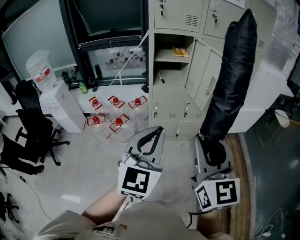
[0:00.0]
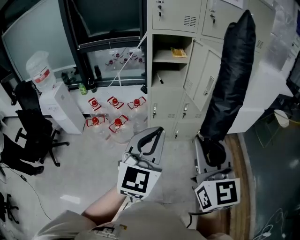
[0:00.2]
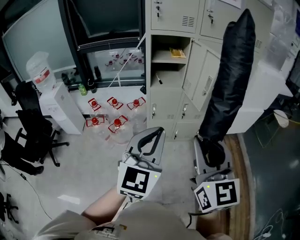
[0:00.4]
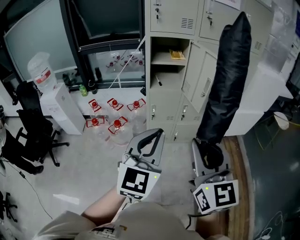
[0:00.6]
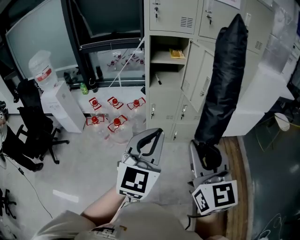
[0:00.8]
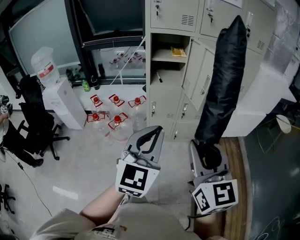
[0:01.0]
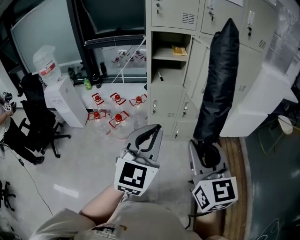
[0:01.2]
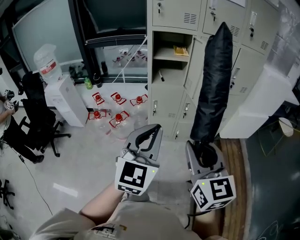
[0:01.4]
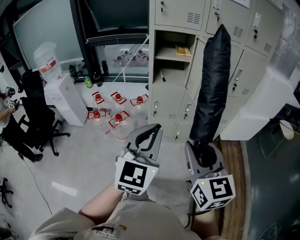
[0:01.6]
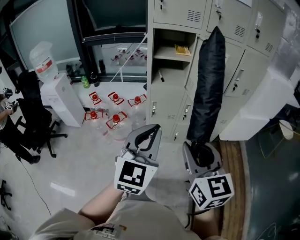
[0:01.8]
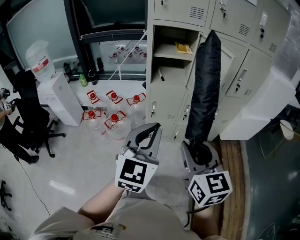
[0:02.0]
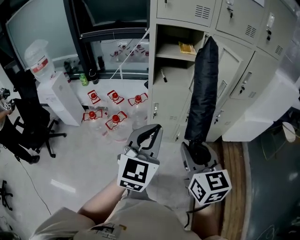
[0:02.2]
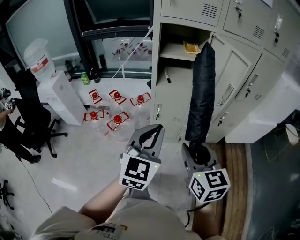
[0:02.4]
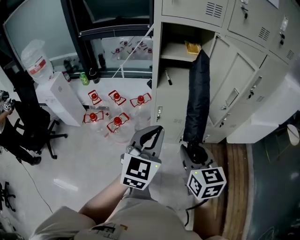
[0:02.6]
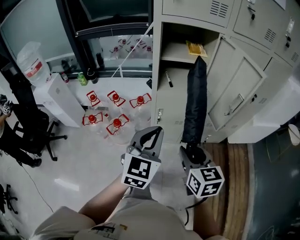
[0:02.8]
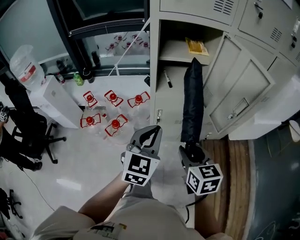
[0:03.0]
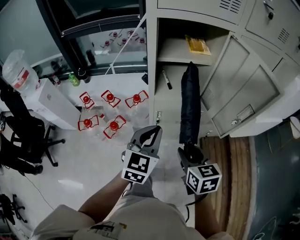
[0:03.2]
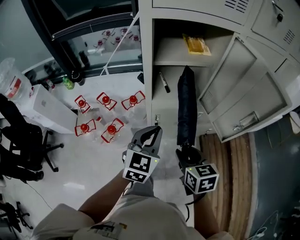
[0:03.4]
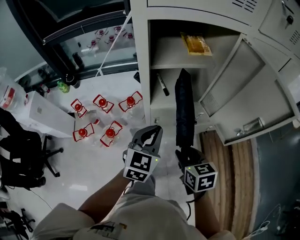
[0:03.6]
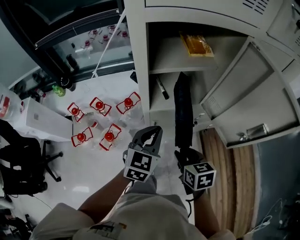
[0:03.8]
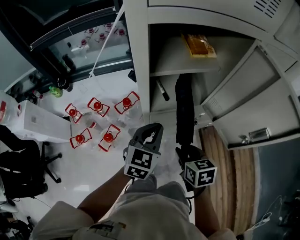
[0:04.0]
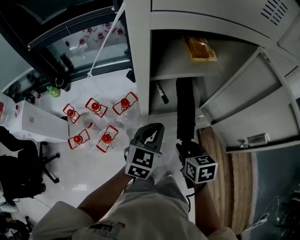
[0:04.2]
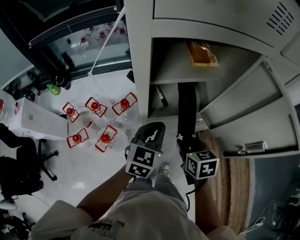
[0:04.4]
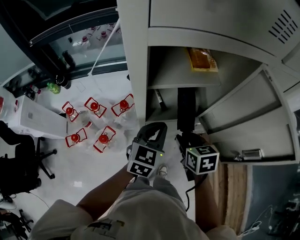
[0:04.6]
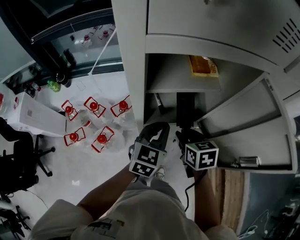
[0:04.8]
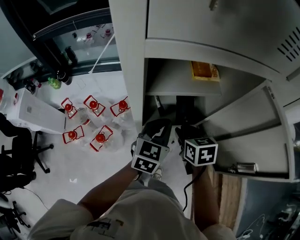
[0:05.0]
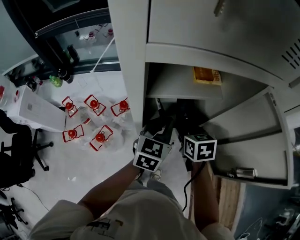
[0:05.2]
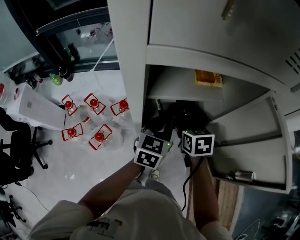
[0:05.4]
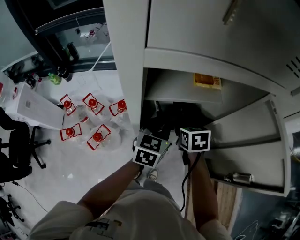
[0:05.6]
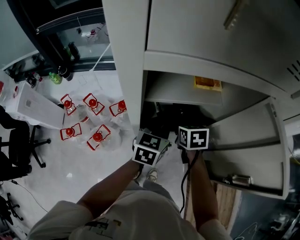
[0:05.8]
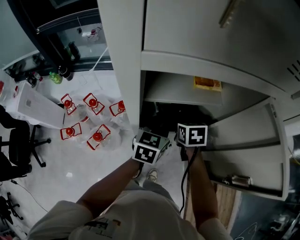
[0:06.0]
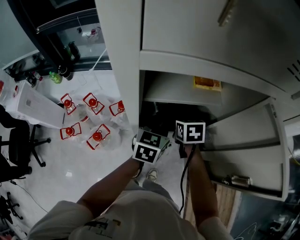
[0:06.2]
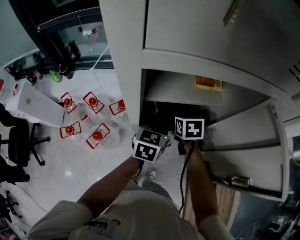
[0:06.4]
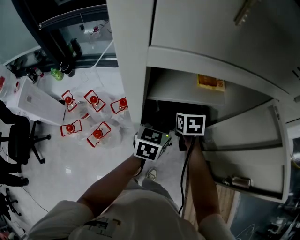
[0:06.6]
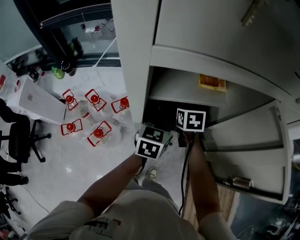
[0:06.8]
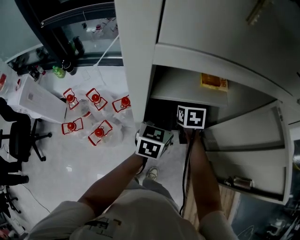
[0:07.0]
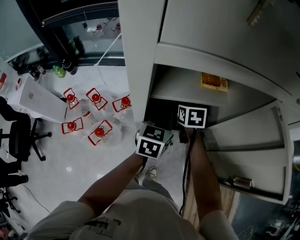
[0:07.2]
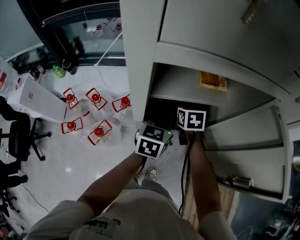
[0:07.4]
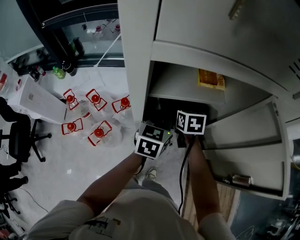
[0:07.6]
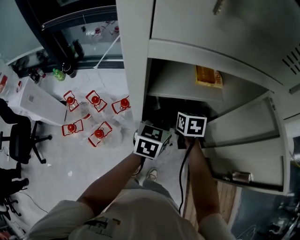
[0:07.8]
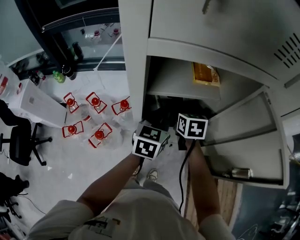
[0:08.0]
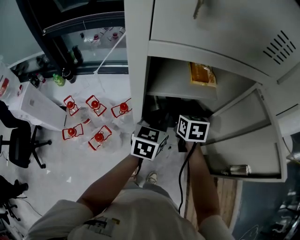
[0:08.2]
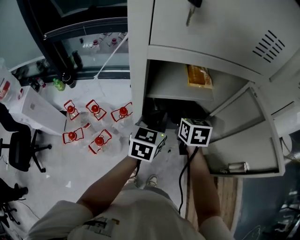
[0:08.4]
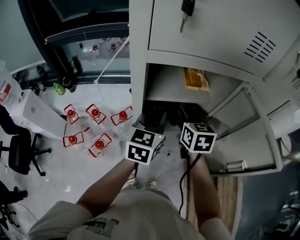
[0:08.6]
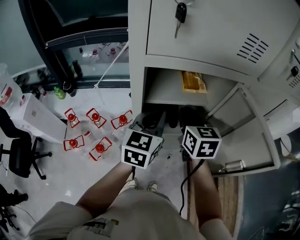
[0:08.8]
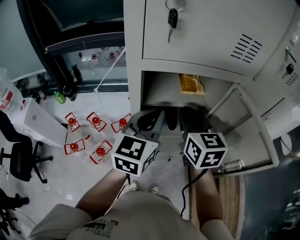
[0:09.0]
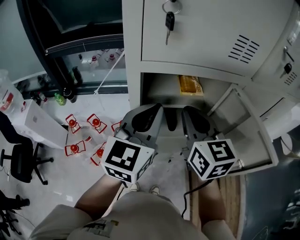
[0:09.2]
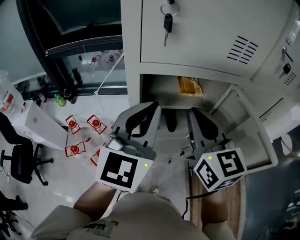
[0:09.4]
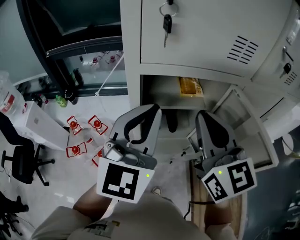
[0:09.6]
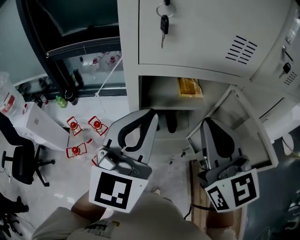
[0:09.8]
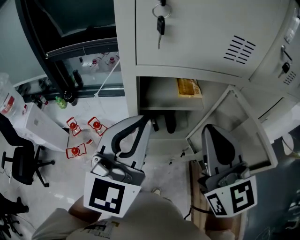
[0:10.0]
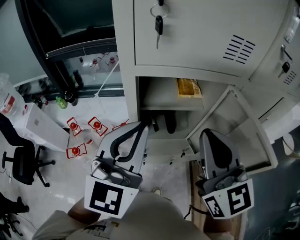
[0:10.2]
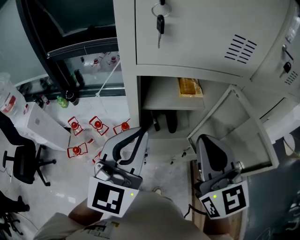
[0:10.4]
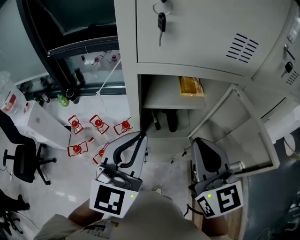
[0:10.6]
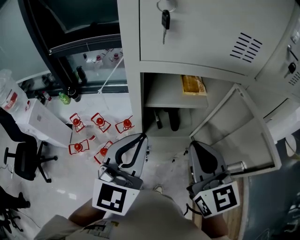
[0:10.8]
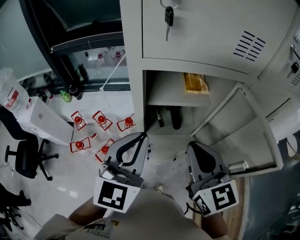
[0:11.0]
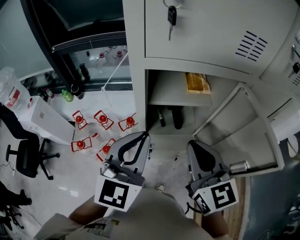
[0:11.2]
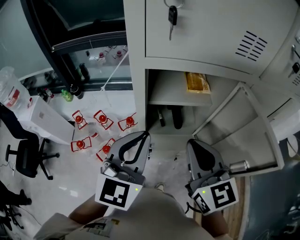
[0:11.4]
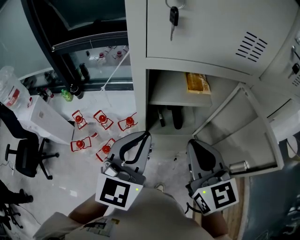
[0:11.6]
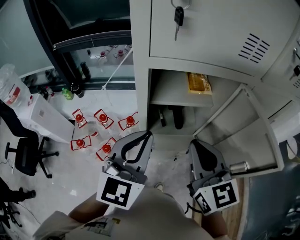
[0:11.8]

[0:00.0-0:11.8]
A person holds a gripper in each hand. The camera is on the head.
0.0 to 1.4 s: The left gripper travels to the right by approximately 5 cm; the right gripper travels downward and to the right by roughly 5 cm.
1.4 to 3.0 s: The grippers both shift forward and downward by about 35 cm. The right gripper swivels approximately 30 degrees.
3.0 to 4.4 s: The two grippers go roughly 25 cm forward.
4.4 to 6.0 s: The right gripper shifts some 15 cm forward, while the left gripper shifts some 10 cm forward.
6.0 to 7.4 s: The right gripper is displaced forward by about 5 cm.
7.4 to 8.8 s: The left gripper moves upward and backward, approximately 15 cm; the right gripper goes approximately 20 cm upward and backward, swivels some 20 degrees, and closes its fingers.
8.8 to 10.4 s: The grippers both shift upward and backward by roughly 20 cm. The left gripper turns by about 20 degrees. The right gripper turns by about 20 degrees.
10.4 to 11.8 s: The right gripper is displaced downward by approximately 5 cm.

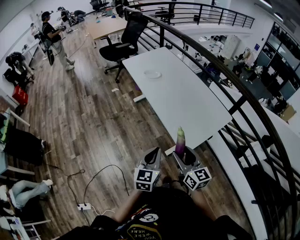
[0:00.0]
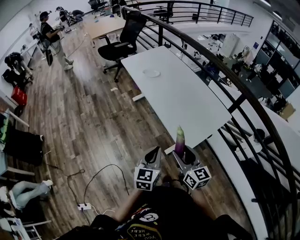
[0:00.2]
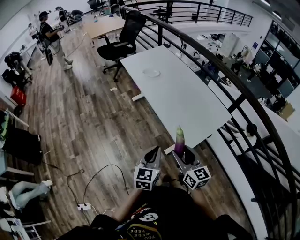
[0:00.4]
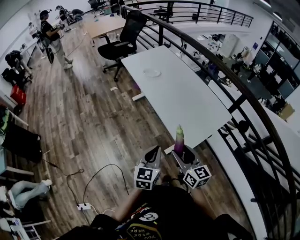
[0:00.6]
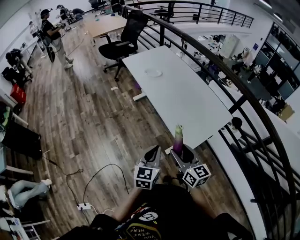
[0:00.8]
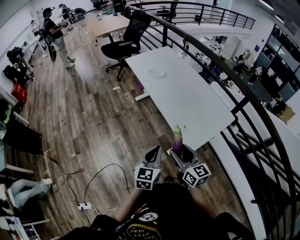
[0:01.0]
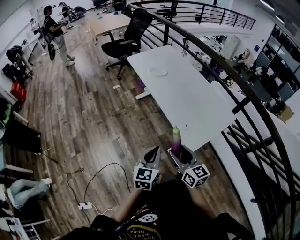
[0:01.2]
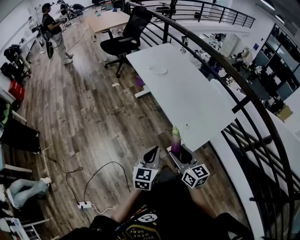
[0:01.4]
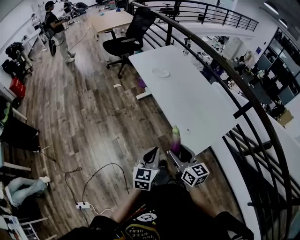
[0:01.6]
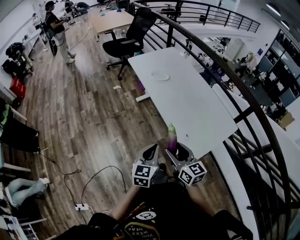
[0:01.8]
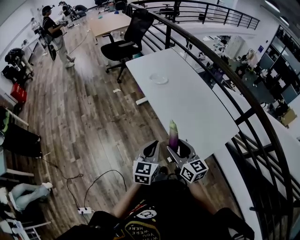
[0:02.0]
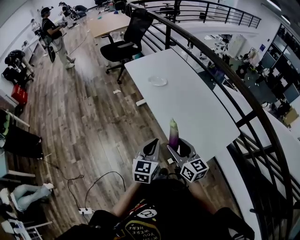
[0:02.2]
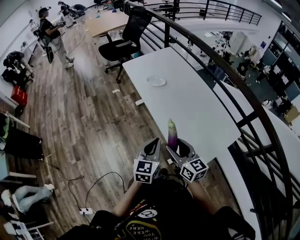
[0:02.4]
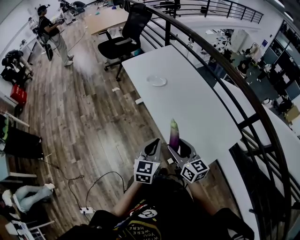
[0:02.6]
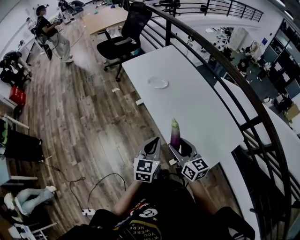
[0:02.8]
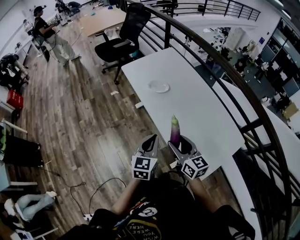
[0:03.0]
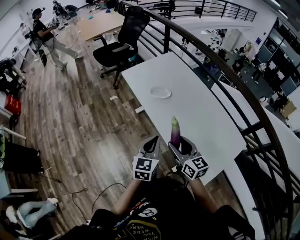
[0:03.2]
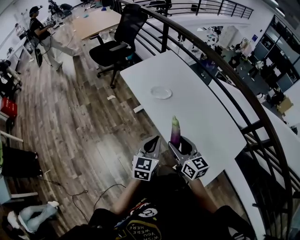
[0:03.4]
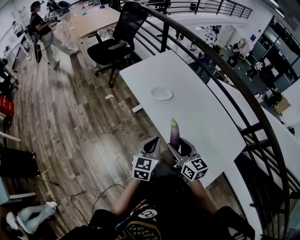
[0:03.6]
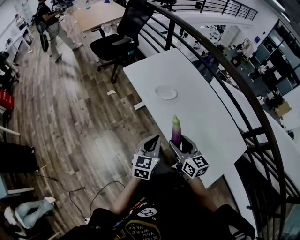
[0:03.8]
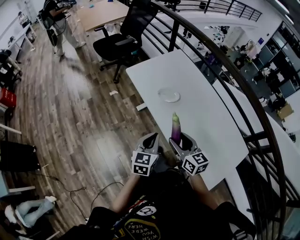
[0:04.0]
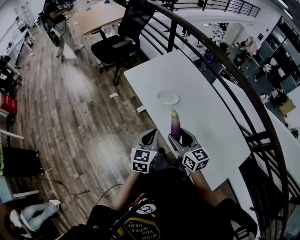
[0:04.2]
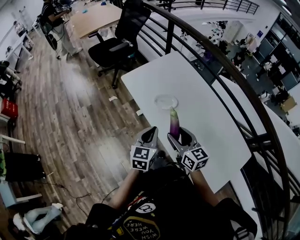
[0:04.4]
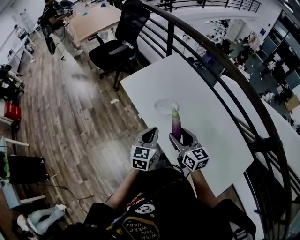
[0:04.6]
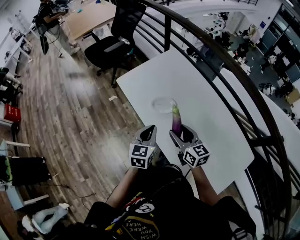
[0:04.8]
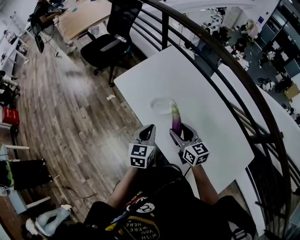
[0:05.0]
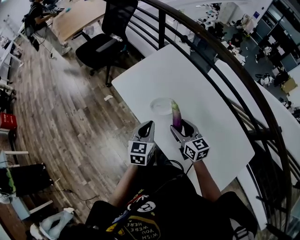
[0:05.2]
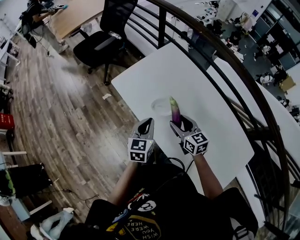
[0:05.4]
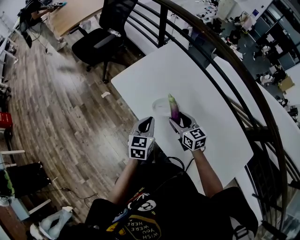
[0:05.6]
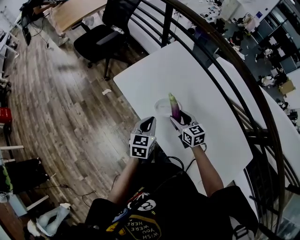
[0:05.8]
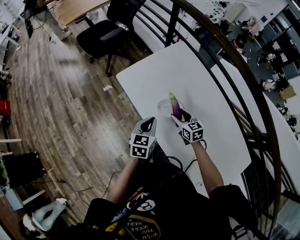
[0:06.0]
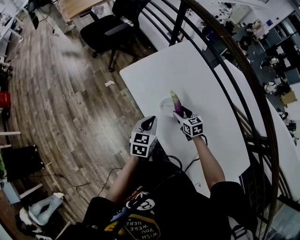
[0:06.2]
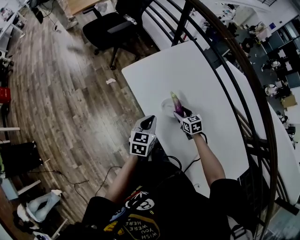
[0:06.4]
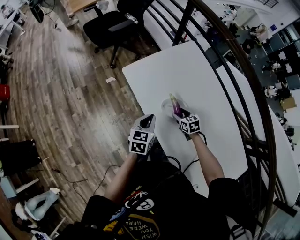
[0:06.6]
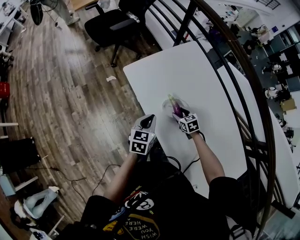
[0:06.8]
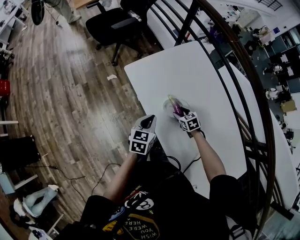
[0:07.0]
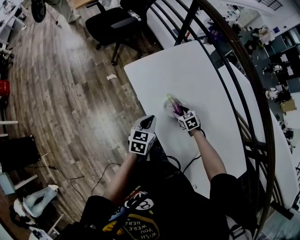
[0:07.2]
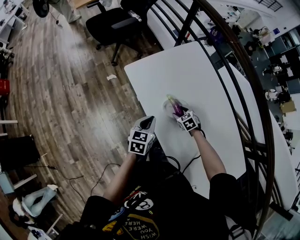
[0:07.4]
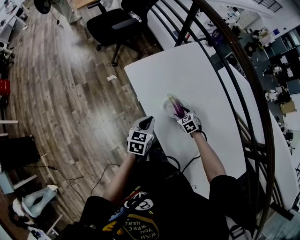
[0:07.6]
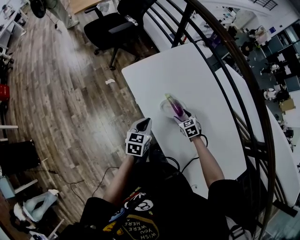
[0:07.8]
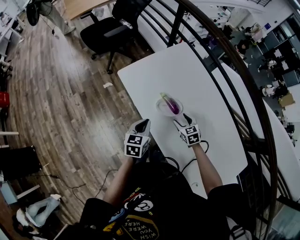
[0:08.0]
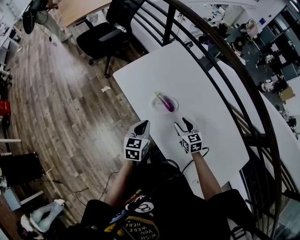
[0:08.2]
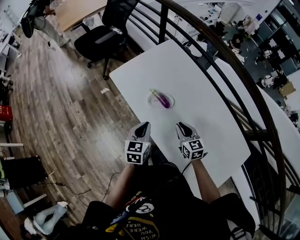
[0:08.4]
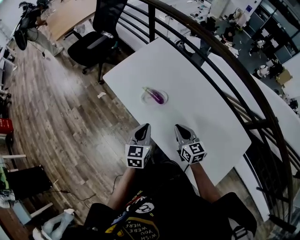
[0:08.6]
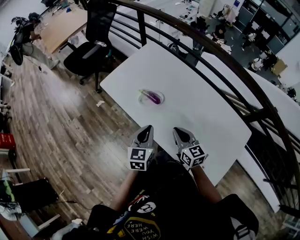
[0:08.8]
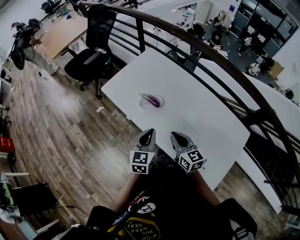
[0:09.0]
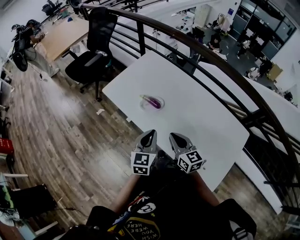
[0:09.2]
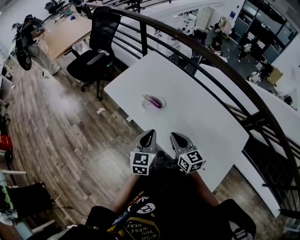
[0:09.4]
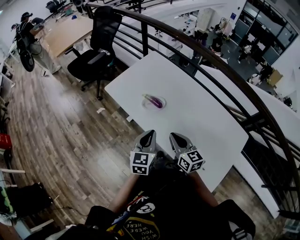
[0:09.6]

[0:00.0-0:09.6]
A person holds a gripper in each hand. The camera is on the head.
0.0 to 1.6 s: The two grippers go about 10 cm to the left.
1.6 to 3.2 s: Both grippers move forward, roughly 35 cm.
3.2 to 4.8 s: Both grippers move forward, roughly 25 cm.
4.8 to 6.4 s: The left gripper travels forward, downward and to the left by some 15 cm, while the right gripper moves downward and forward, about 30 cm, and points its fingers roughly 30 degrees further downward.
6.4 to 8.0 s: The right gripper heads backward, covering some 5 cm.
8.0 to 9.6 s: The right gripper shifts some 30 cm upward and backward, tilts its fingers roughly 30 degrees upward, and closes. The left gripper goes approximately 20 cm backward, upward and to the right, and changes its angle by approximately 20 degrees.

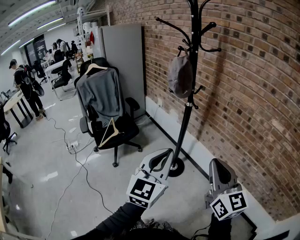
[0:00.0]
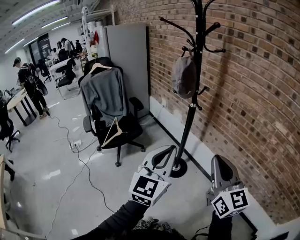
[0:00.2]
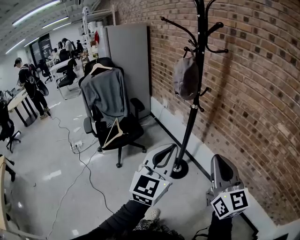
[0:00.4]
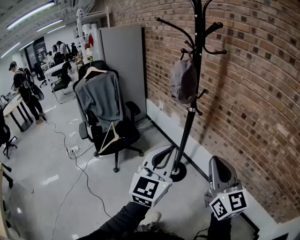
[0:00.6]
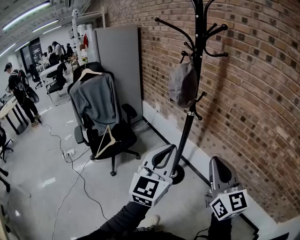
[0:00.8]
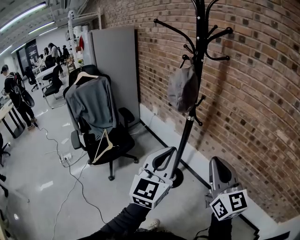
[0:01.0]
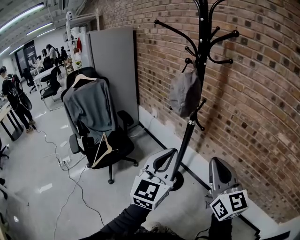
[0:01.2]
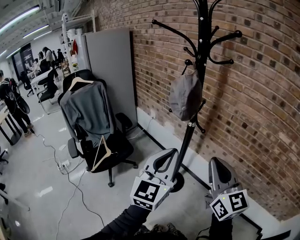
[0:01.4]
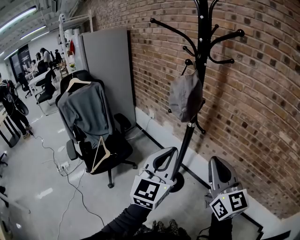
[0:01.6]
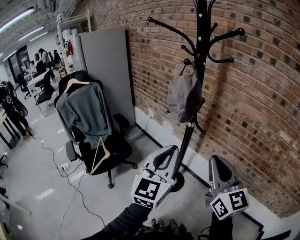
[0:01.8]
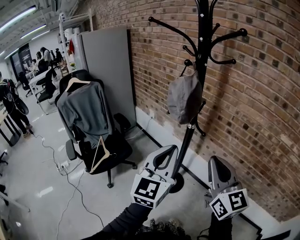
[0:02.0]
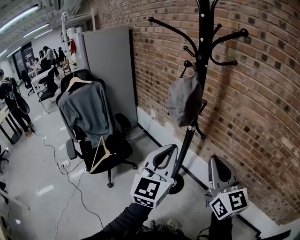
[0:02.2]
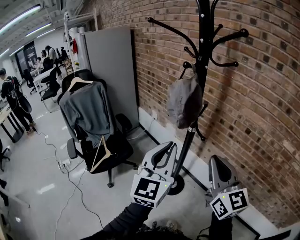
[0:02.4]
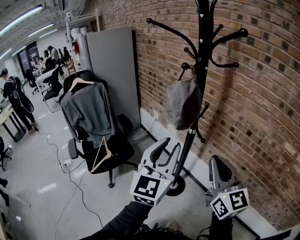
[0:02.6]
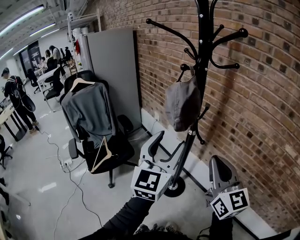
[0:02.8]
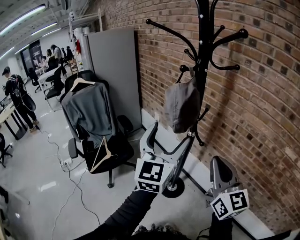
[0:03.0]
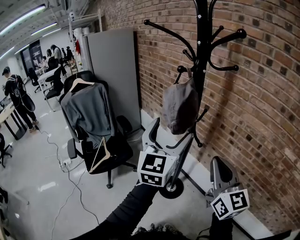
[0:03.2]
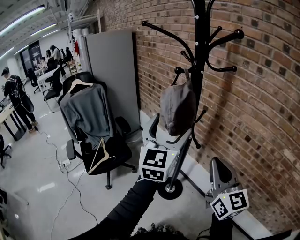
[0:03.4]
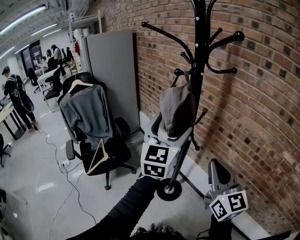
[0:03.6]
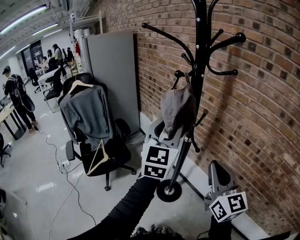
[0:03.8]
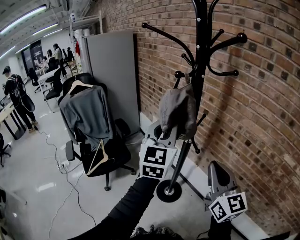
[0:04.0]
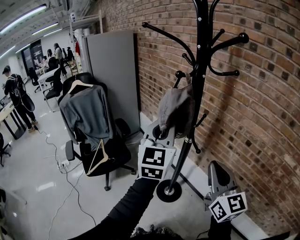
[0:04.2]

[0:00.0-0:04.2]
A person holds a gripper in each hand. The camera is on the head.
0.0 to 1.4 s: The left gripper travels forward by approximately 15 cm. Meanwhile the right gripper is displaced forward and to the left by some 15 cm.
1.4 to 2.8 s: The two grippers go about 10 cm forward. The left gripper opens its fingers.
2.8 to 4.2 s: The left gripper shifts roughly 10 cm forward, and closes up.
